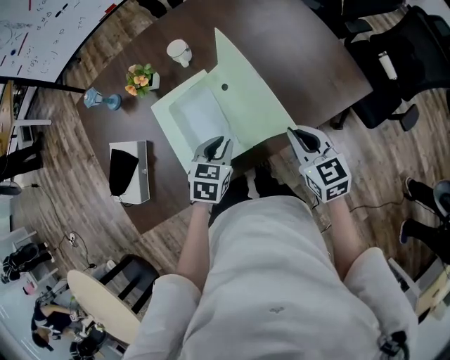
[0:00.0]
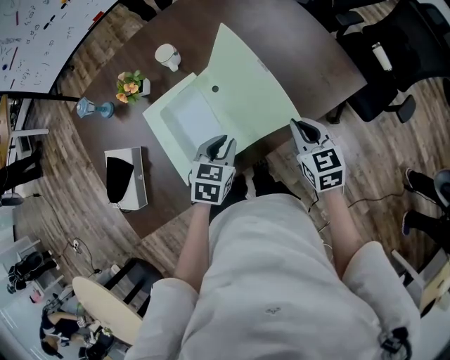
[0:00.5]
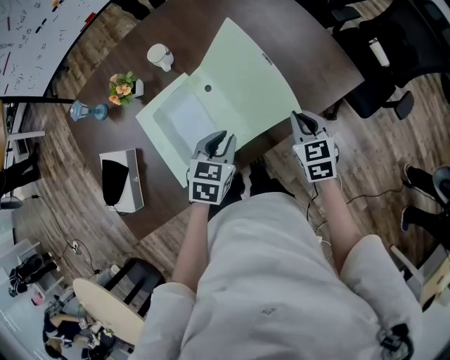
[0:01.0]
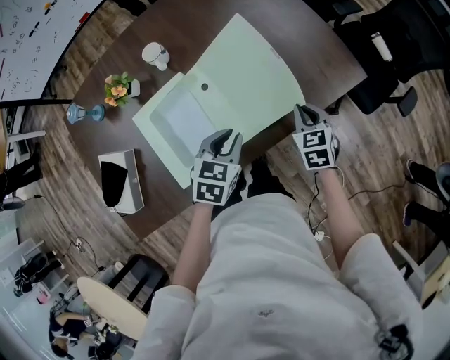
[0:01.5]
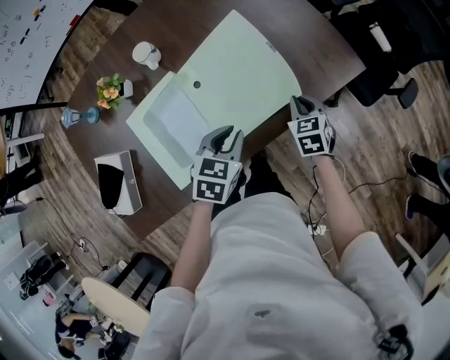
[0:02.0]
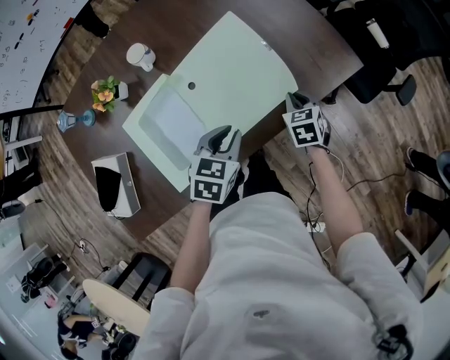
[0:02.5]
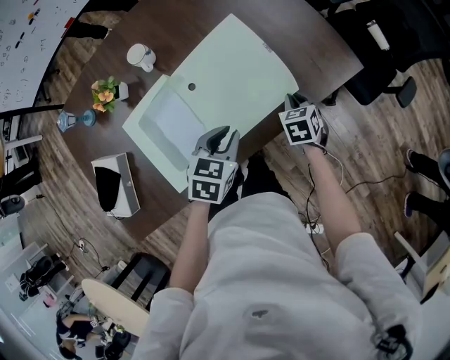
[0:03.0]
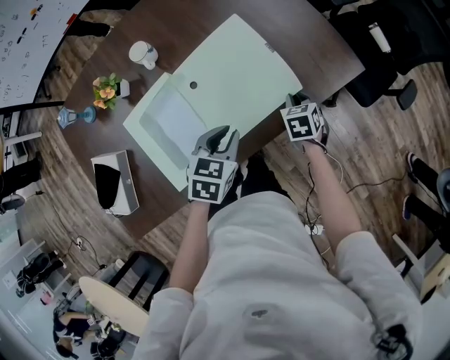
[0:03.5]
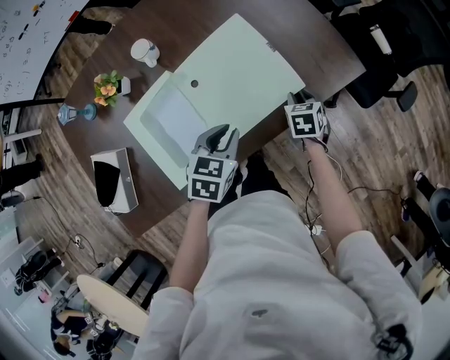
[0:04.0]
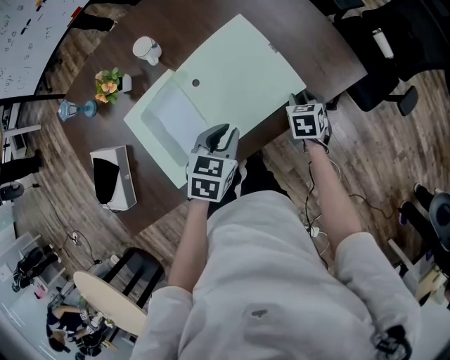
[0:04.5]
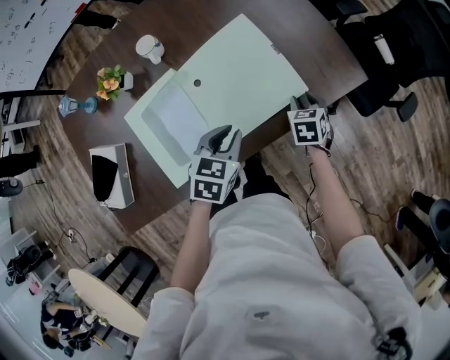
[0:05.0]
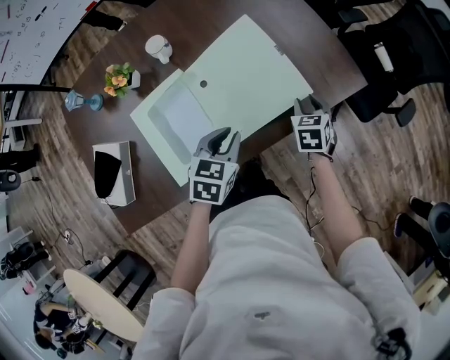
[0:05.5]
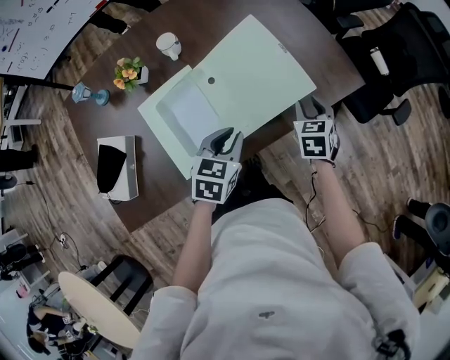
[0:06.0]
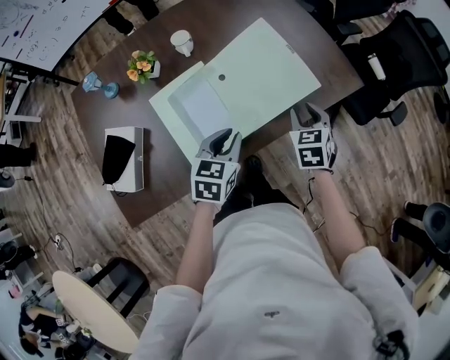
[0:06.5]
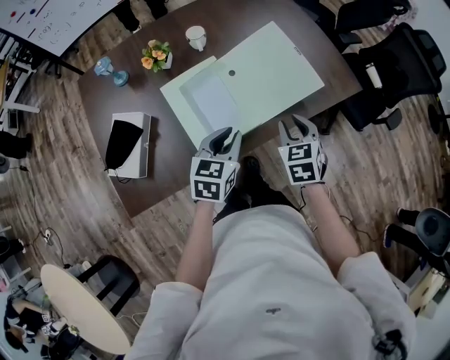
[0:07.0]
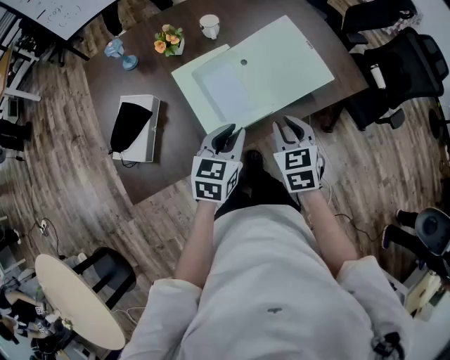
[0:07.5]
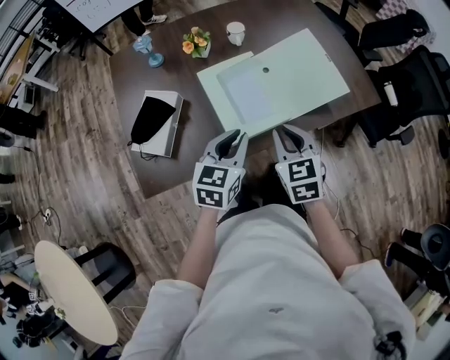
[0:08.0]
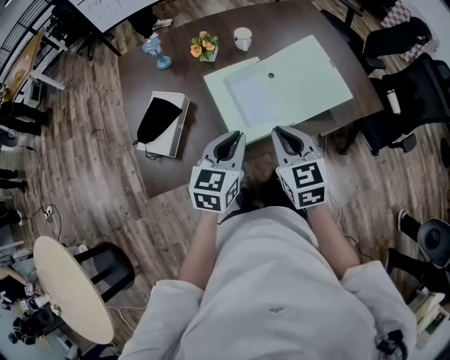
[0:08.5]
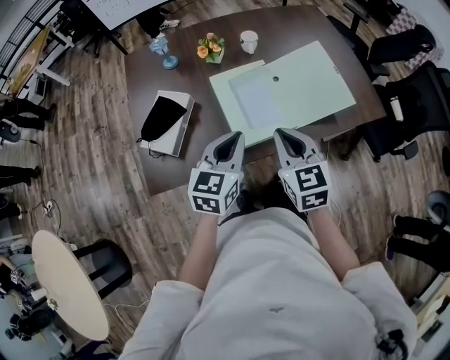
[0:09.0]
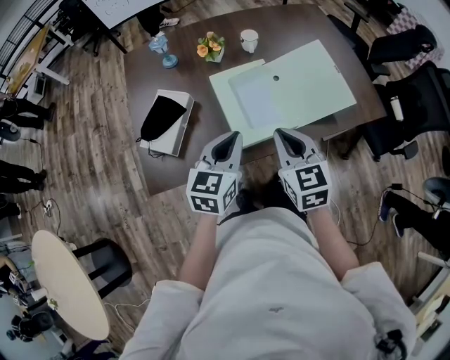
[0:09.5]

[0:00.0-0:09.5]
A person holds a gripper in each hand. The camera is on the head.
0:00.0 to 0:02.0: The right gripper heads downward, to the right and forward, covering roughly 20 cm, and rotates about 30 degrees. The left gripper shifts roughly 10 cm to the right.
0:02.0 to 0:04.0: The right gripper changes place by approximately 5 cm, and opens.
0:04.0 to 0:05.5: The right gripper shifts roughly 5 cm upward.
0:05.5 to 0:07.5: The right gripper heads backward, to the left and upward, covering roughly 30 cm, and changes its angle by about 20 degrees, while the left gripper moves backward, to the left and upward, about 20 cm.
0:07.5 to 0:09.5: The two grippers go about 10 cm to the left and upward. The right gripper changes its angle by some 20 degrees.

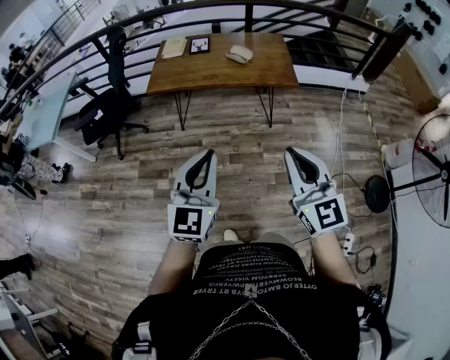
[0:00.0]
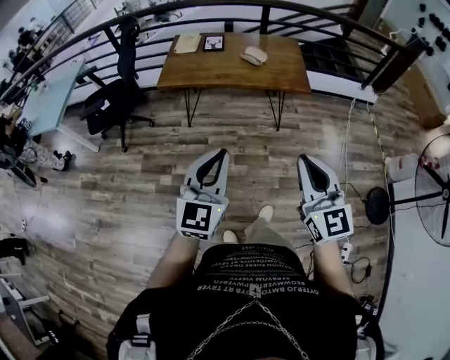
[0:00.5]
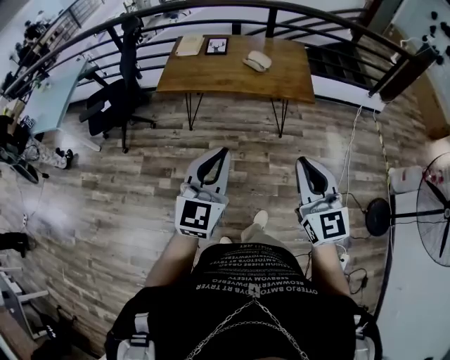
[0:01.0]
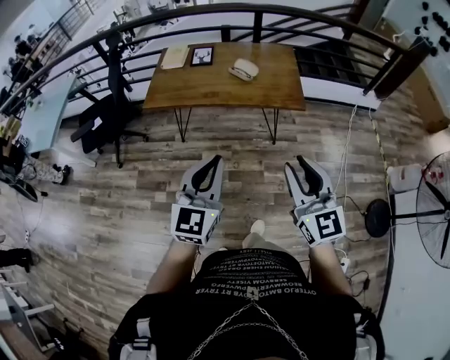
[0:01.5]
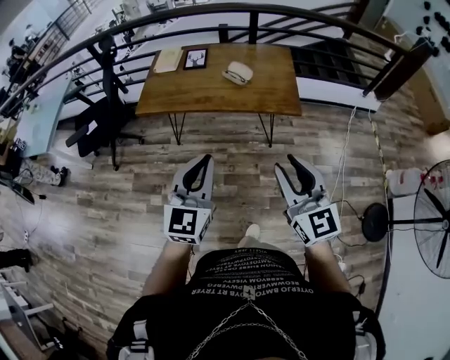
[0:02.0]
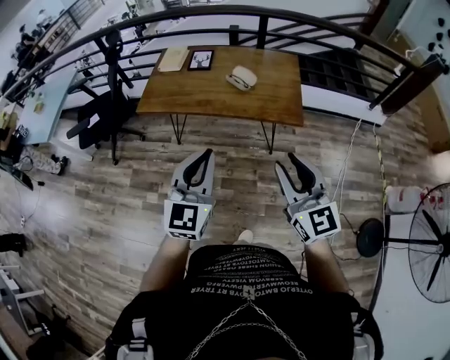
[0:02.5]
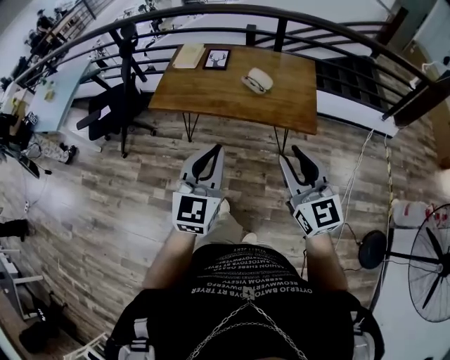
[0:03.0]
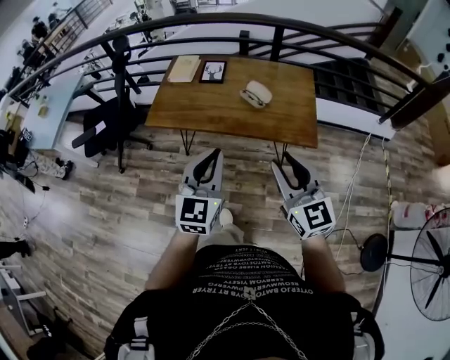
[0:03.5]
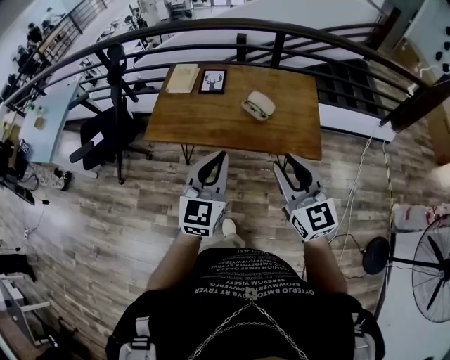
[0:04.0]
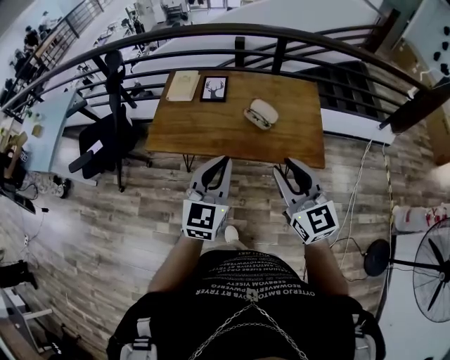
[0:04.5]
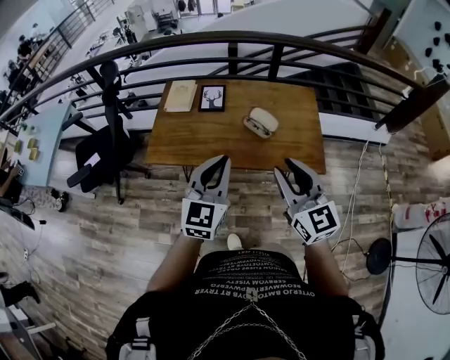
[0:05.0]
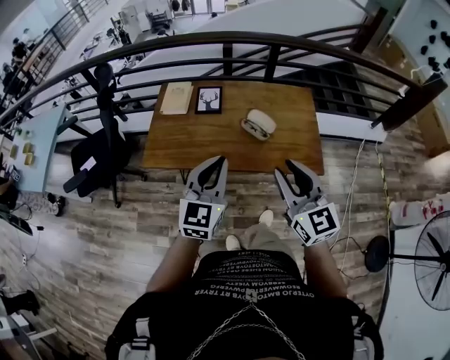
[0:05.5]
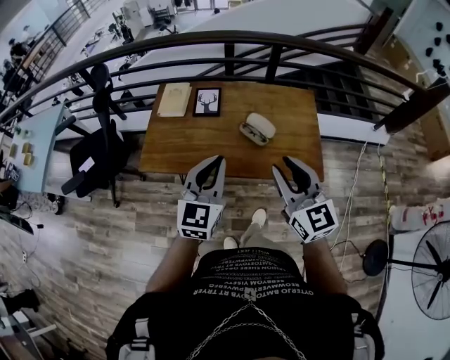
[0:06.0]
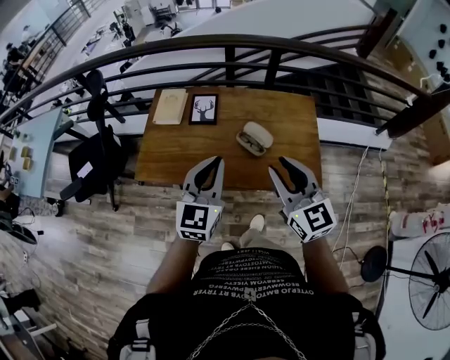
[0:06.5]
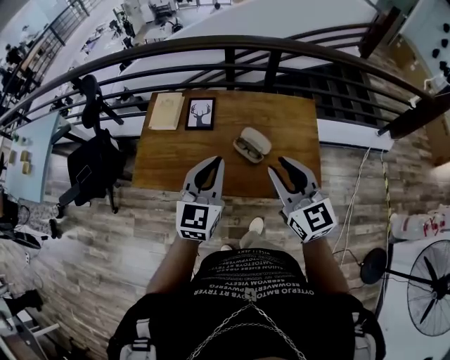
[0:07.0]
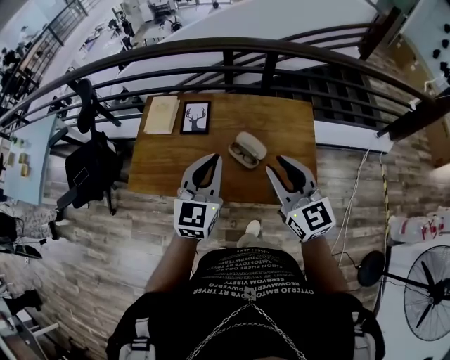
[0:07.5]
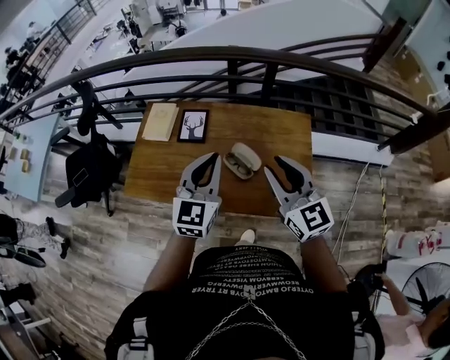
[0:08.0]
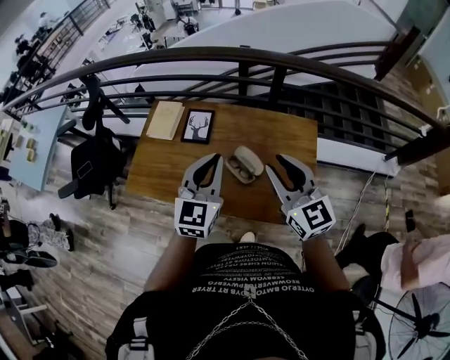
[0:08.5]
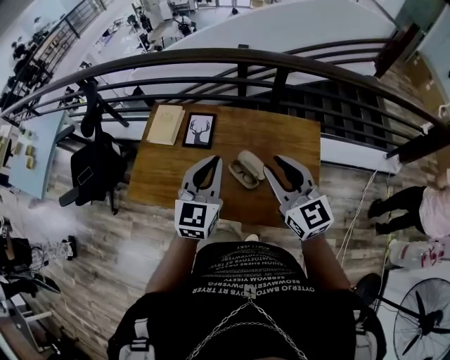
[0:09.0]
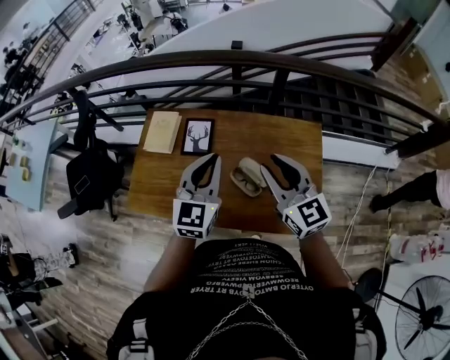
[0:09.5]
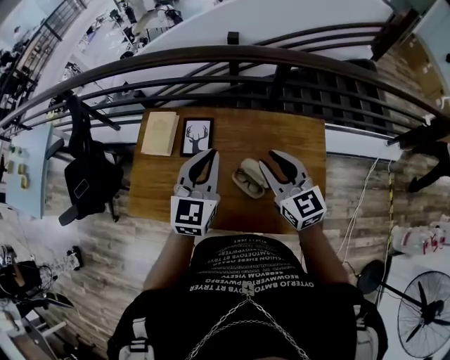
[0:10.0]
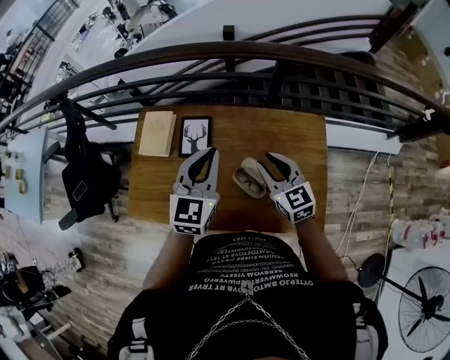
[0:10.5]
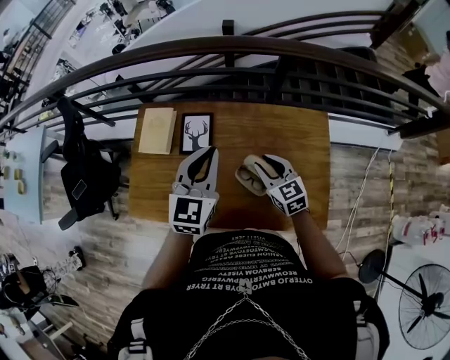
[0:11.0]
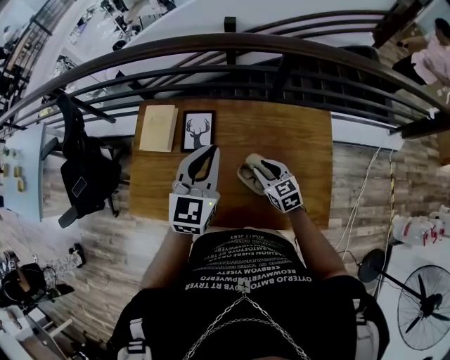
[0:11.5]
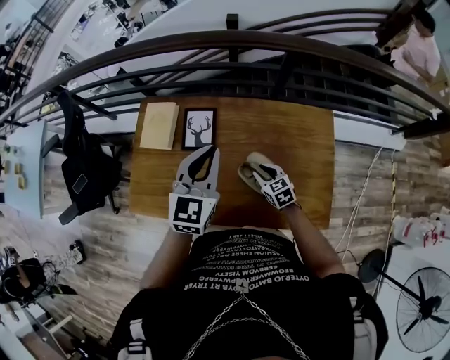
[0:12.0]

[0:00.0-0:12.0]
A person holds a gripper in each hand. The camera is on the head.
0:00.0 to 0:02.0: Both grippers move forward and to the right, roughly 20 cm. The right gripper opens.
0:02.0 to 0:04.0: Both grippers travel together forward, some 25 cm.
0:04.0 to 0:06.0: Both grippers move forward, roughly 15 cm.
0:06.0 to 0:08.0: Both grippers travel together forward and to the right, about 20 cm.
0:08.0 to 0:10.0: The right gripper is displaced forward and downward by approximately 20 cm. The left gripper is displaced forward by roughly 15 cm.
0:10.0 to 0:12.0: The right gripper moves downward, about 30 cm, and tips its fingers downward by some 30 degrees.

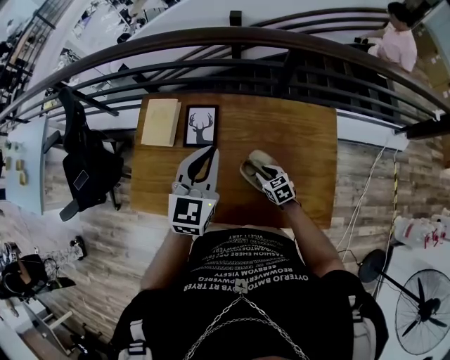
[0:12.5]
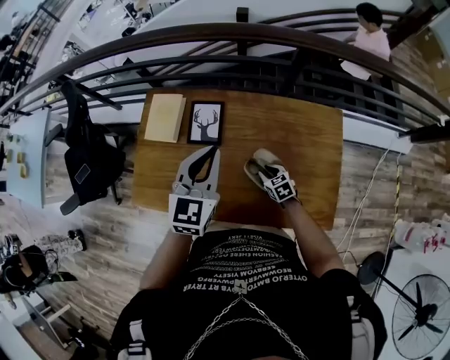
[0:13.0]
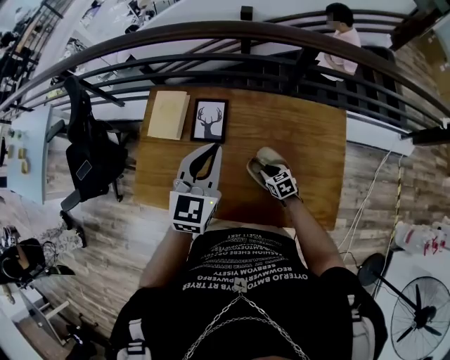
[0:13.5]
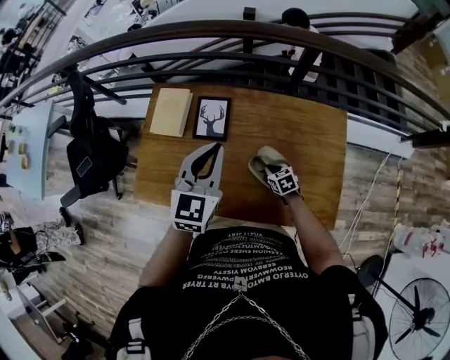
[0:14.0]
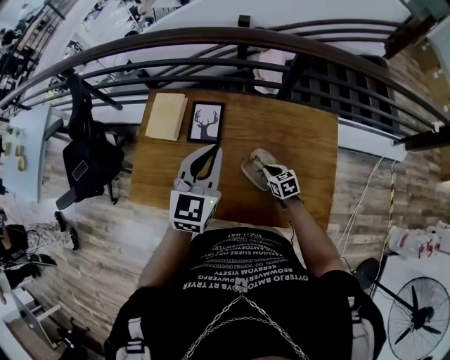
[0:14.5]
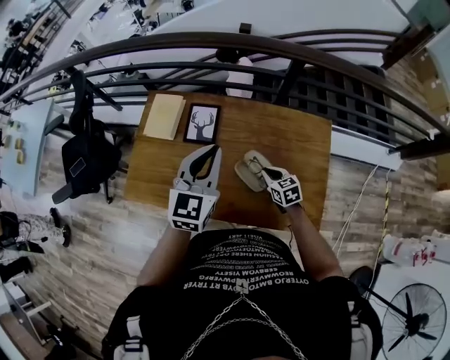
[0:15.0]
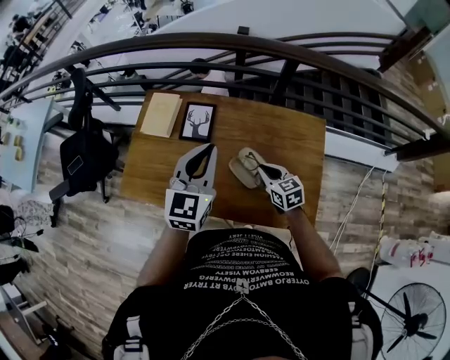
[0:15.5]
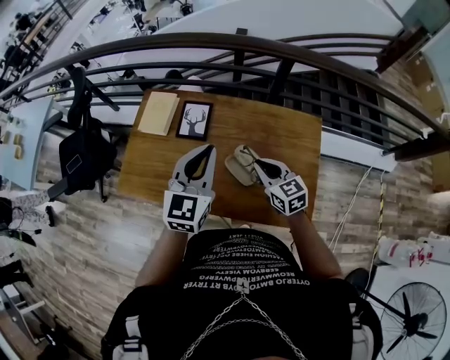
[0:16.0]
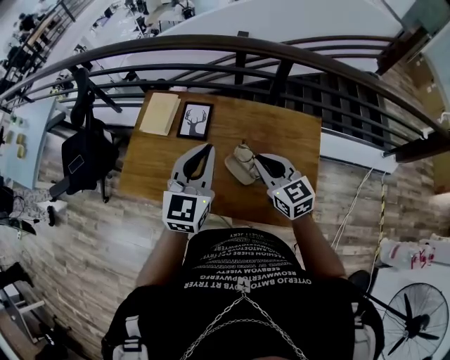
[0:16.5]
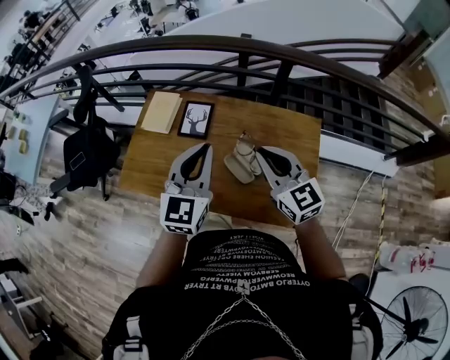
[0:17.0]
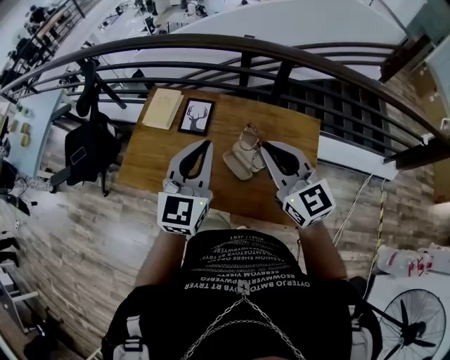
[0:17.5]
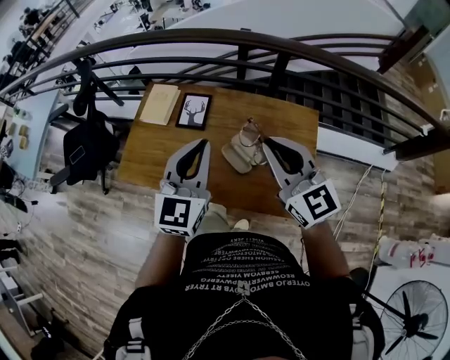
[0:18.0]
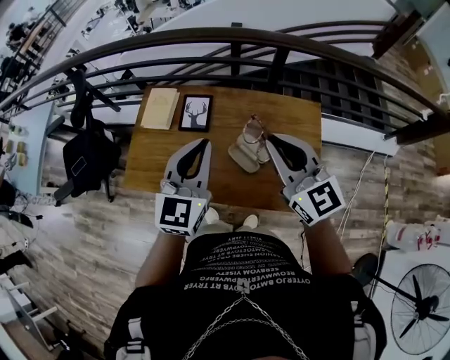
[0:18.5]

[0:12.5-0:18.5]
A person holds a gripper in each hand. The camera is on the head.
0:12.5 to 0:14.5: The right gripper closes up.
0:14.5 to 0:16.5: The right gripper moves upward, some 30 cm, and tilts its fingers some 30 degrees upward. The left gripper heads backward, covering some 10 cm.
0:16.5 to 0:18.5: The right gripper travels upward by roughly 15 cm.
